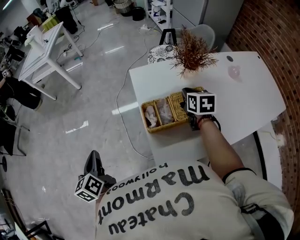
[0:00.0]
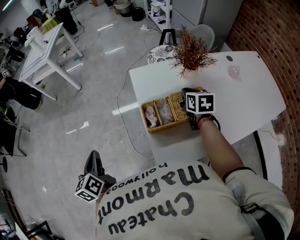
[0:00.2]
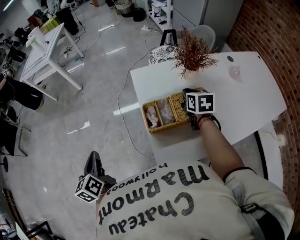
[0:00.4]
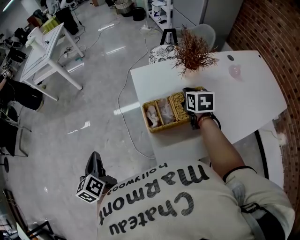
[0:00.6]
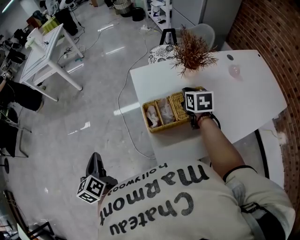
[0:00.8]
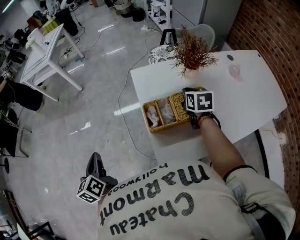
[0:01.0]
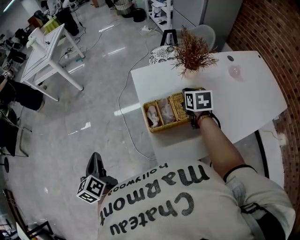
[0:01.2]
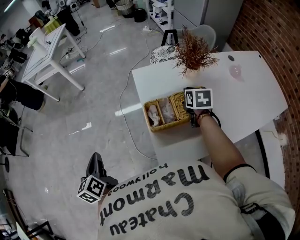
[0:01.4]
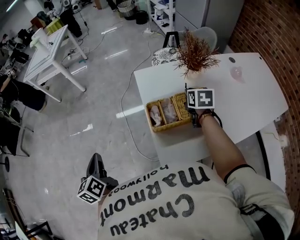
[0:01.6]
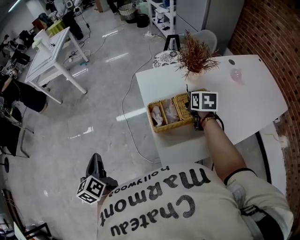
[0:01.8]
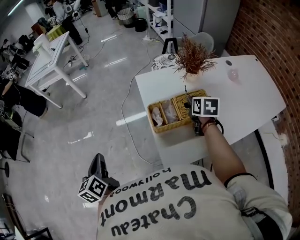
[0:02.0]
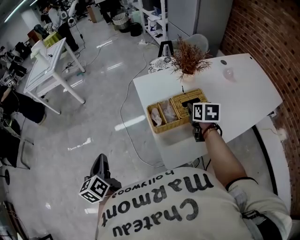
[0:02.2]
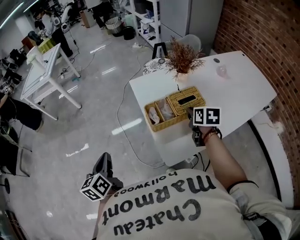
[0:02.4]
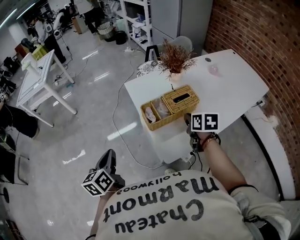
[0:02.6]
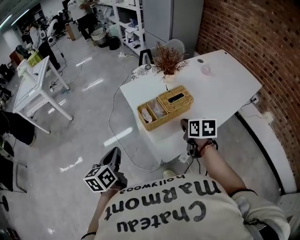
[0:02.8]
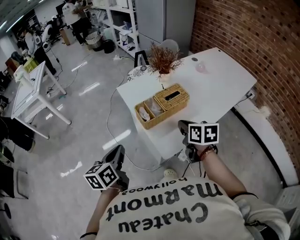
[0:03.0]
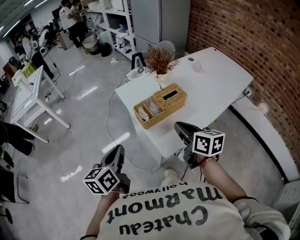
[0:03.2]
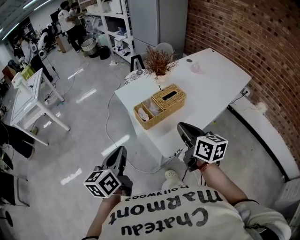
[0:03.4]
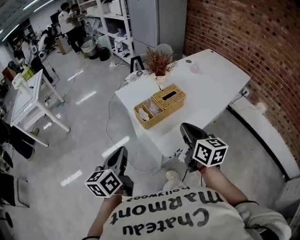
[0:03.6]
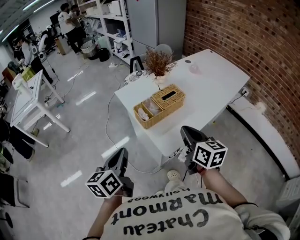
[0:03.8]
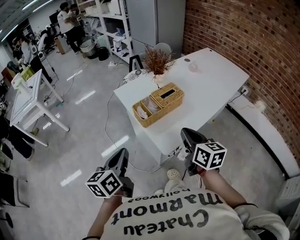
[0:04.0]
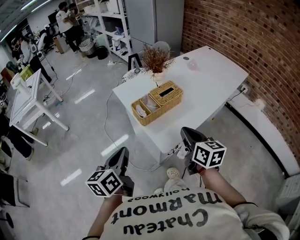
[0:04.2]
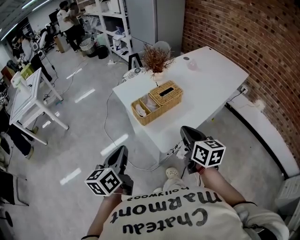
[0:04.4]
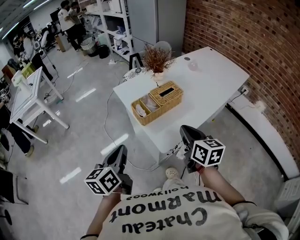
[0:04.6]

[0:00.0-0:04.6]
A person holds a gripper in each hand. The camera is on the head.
0:00.0 to 0:01.6: The grippers make only small movements.
0:01.6 to 0:03.0: The right gripper moves backward, about 25 cm. The left gripper heads to the right, covering some 10 cm, and turns by some 40 degrees.
0:03.0 to 0:04.6: The left gripper shifts by roughly 5 cm; the right gripper travels backward by approximately 10 cm.

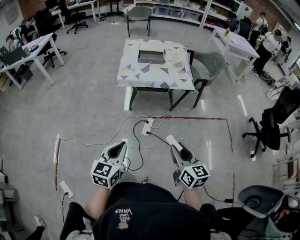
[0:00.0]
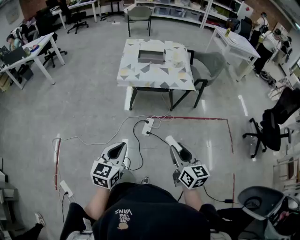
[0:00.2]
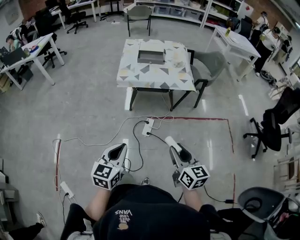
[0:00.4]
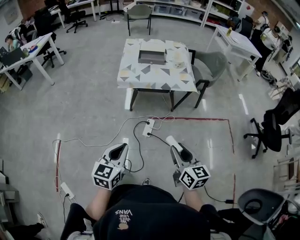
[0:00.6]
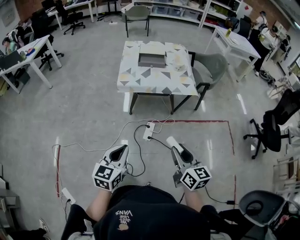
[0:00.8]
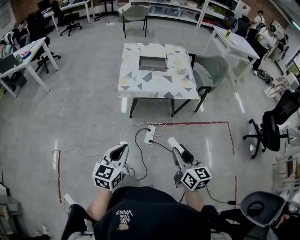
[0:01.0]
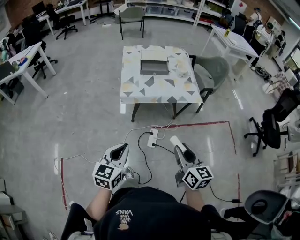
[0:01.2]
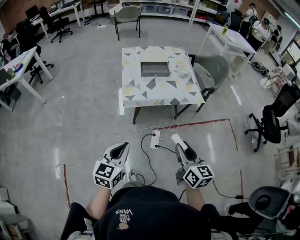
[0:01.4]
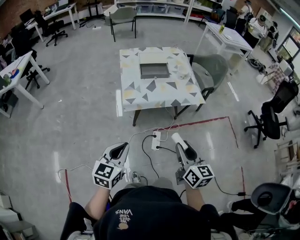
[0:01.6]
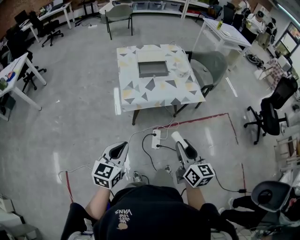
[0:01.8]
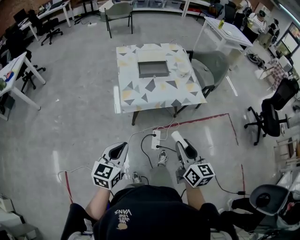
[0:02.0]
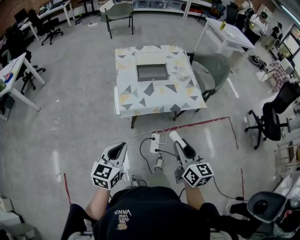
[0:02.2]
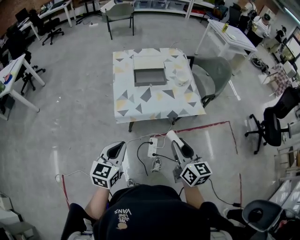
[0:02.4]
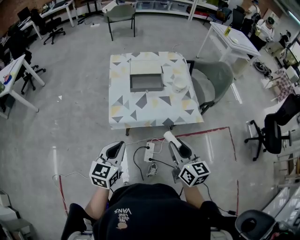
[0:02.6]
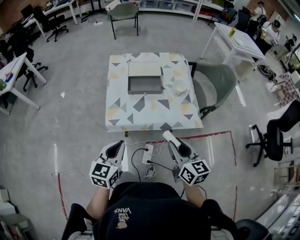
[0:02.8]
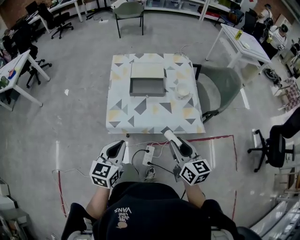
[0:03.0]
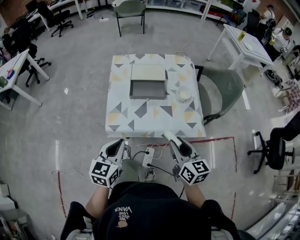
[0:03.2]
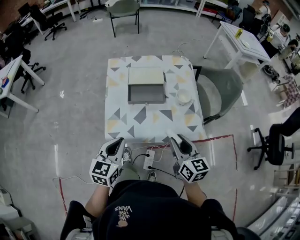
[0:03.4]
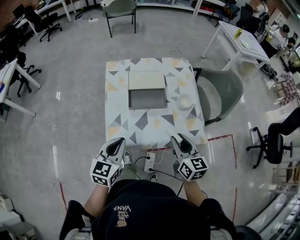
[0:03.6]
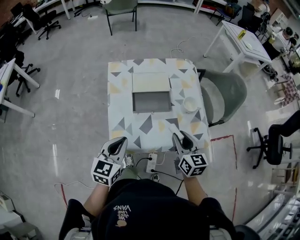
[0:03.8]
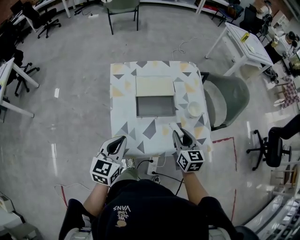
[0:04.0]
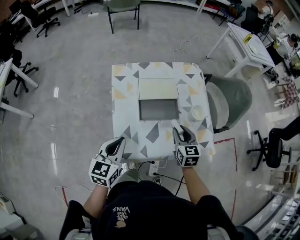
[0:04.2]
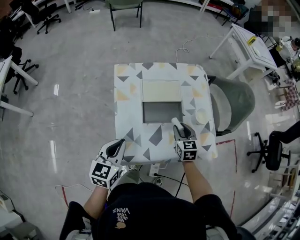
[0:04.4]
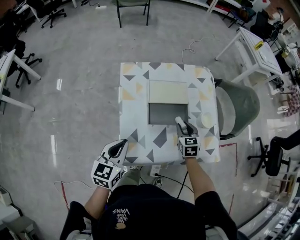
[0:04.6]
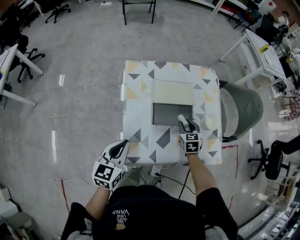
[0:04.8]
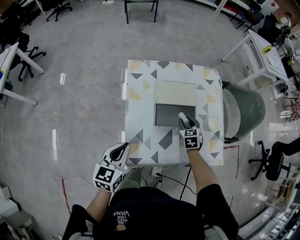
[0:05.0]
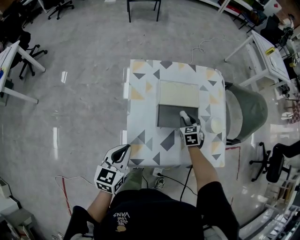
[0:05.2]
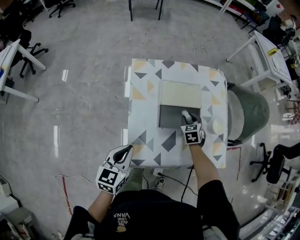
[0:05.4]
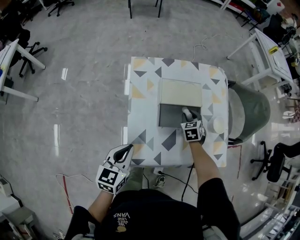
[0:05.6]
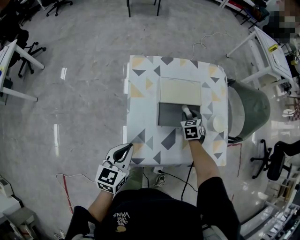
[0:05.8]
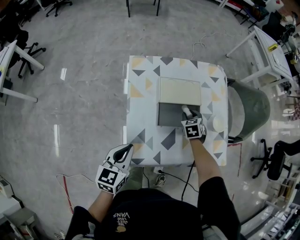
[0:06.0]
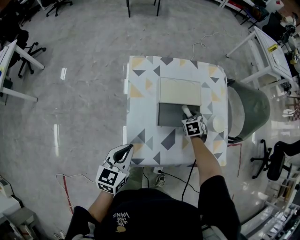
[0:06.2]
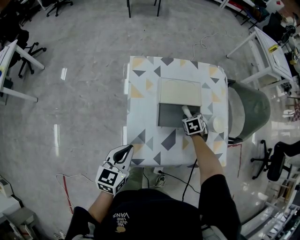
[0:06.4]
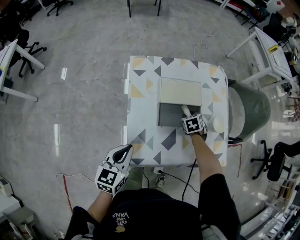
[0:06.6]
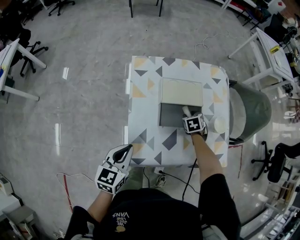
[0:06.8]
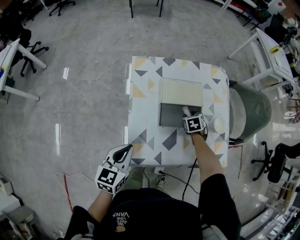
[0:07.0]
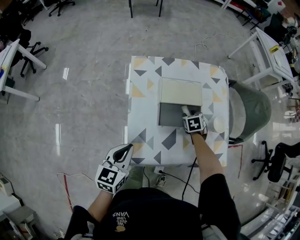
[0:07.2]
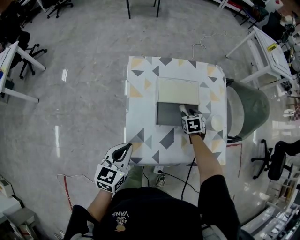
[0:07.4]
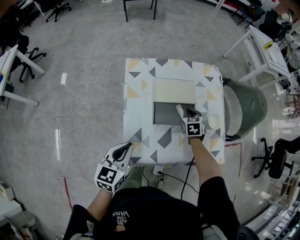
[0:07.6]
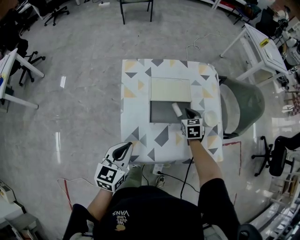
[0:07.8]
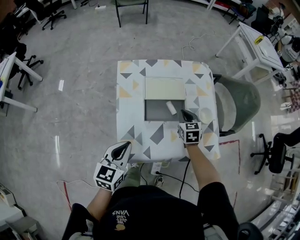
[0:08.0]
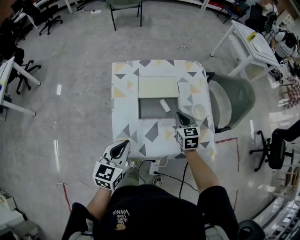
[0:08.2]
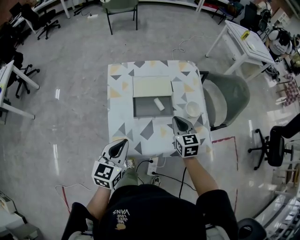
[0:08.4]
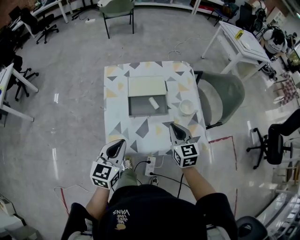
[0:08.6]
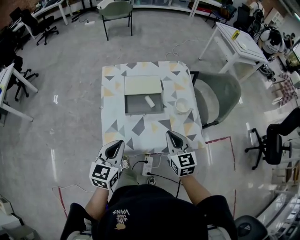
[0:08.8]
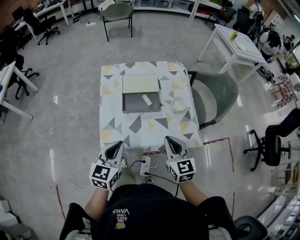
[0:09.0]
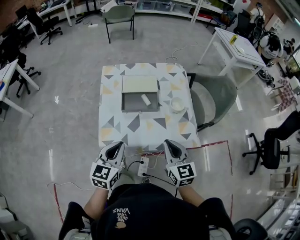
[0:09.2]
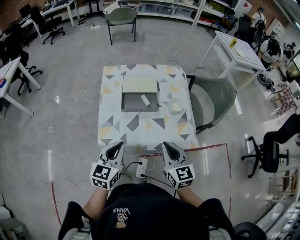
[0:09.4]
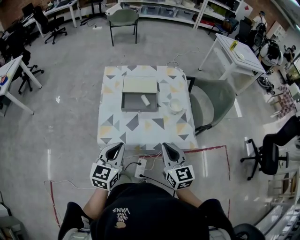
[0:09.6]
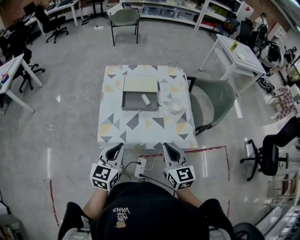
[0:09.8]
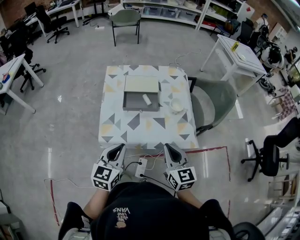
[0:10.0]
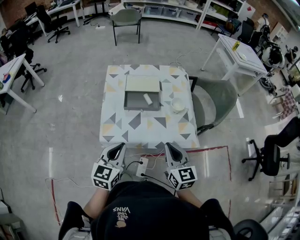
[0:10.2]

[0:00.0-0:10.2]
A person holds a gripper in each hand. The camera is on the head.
0:00.0 to 0:01.4: Both grippers travel together forward and to the left, about 25 cm.
0:01.4 to 0:03.0: Both grippers travel together forward, approximately 30 cm.
0:03.0 to 0:04.4: The left gripper heads forward and to the left, covering roughly 30 cm. The right gripper heads forward and downward, covering about 35 cm, and changes its angle by roughly 30 degrees.
0:04.4 to 0:05.8: The right gripper moves forward and downward, some 15 cm, and changes its angle by approximately 20 degrees. Meanwhile the left gripper ends up about 5 cm from where it was.
0:05.8 to 0:07.2: The grippers stay close to where they were, moving slightly.
0:07.2 to 0:08.8: The right gripper goes about 35 cm backward and upward, tilts its fingers approximately 40 degrees upward, and closes its fingers. Meanwhile the left gripper heads to the right, upward and backward, covering approximately 20 cm.
0:08.8 to 0:10.2: Both grippers travel together backward, roughly 10 cm.

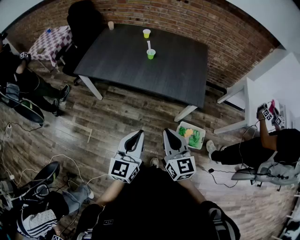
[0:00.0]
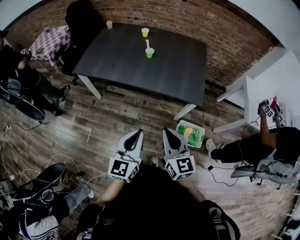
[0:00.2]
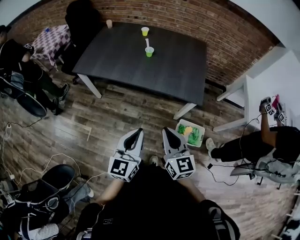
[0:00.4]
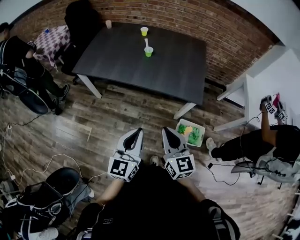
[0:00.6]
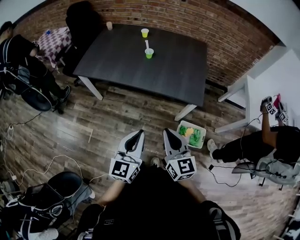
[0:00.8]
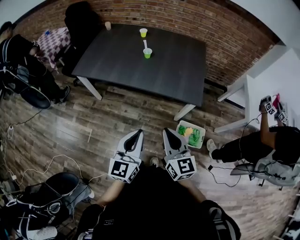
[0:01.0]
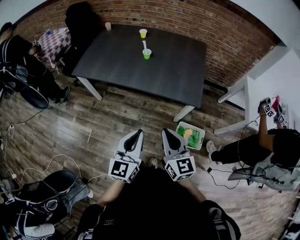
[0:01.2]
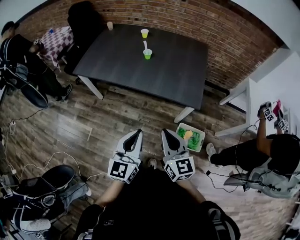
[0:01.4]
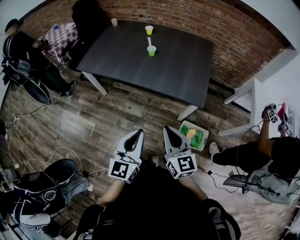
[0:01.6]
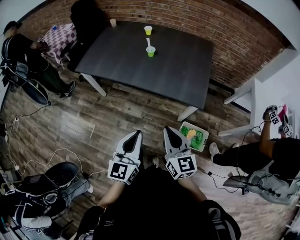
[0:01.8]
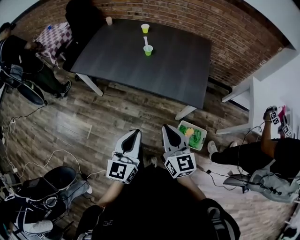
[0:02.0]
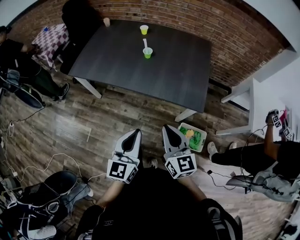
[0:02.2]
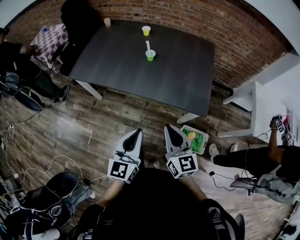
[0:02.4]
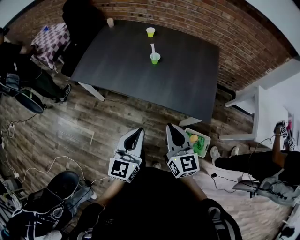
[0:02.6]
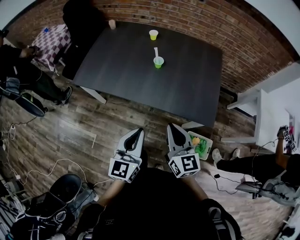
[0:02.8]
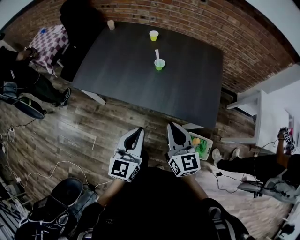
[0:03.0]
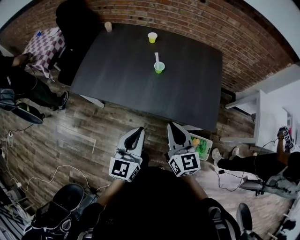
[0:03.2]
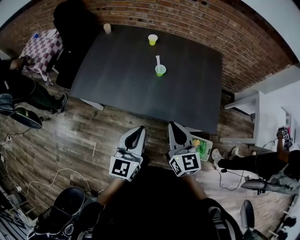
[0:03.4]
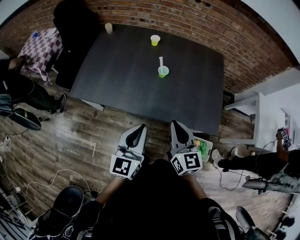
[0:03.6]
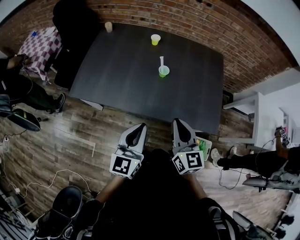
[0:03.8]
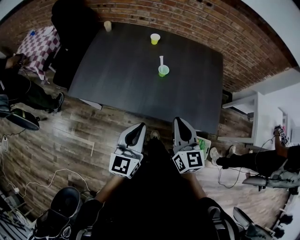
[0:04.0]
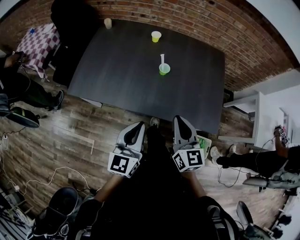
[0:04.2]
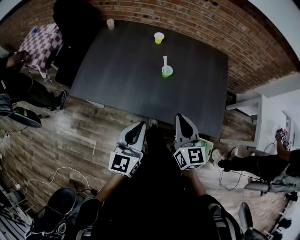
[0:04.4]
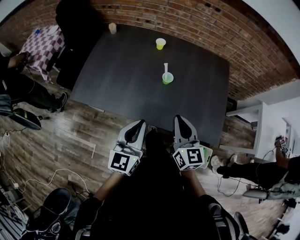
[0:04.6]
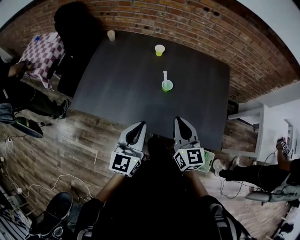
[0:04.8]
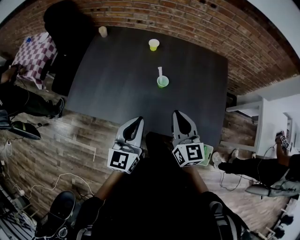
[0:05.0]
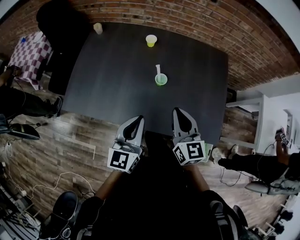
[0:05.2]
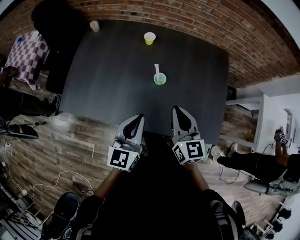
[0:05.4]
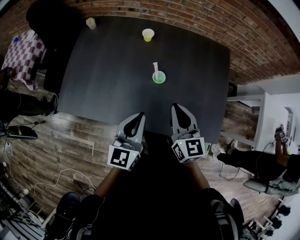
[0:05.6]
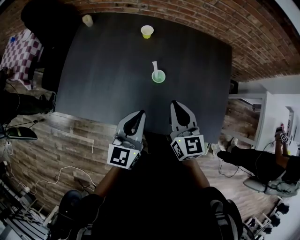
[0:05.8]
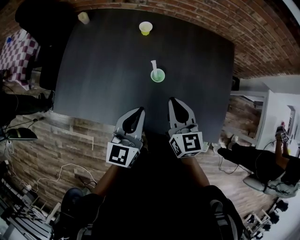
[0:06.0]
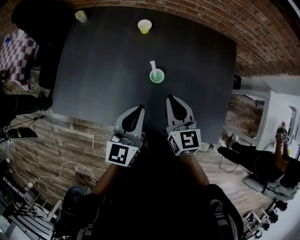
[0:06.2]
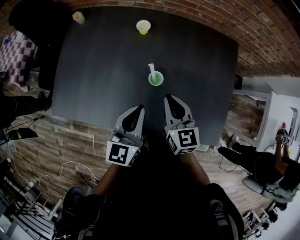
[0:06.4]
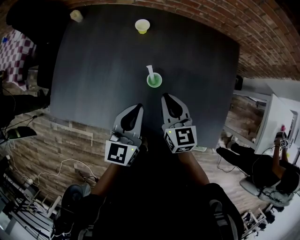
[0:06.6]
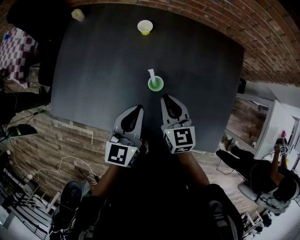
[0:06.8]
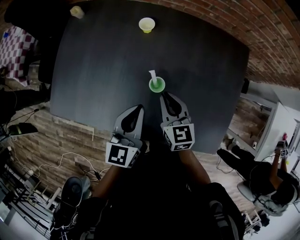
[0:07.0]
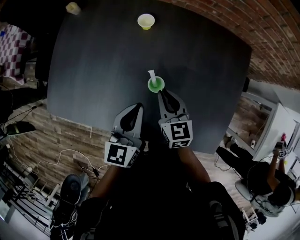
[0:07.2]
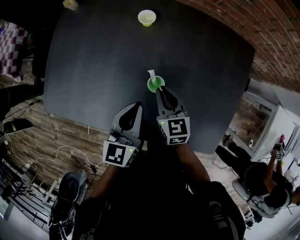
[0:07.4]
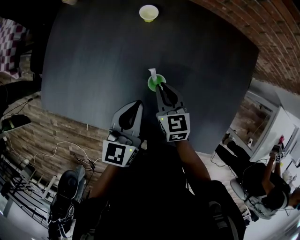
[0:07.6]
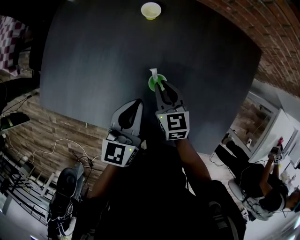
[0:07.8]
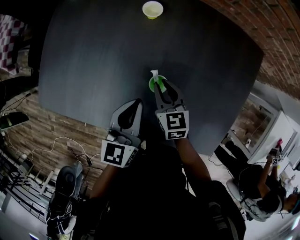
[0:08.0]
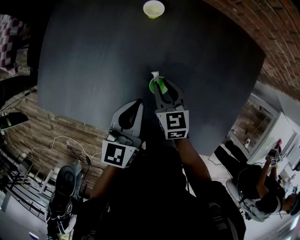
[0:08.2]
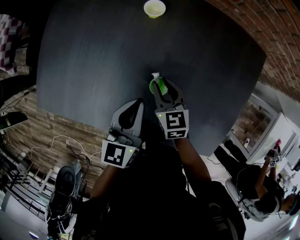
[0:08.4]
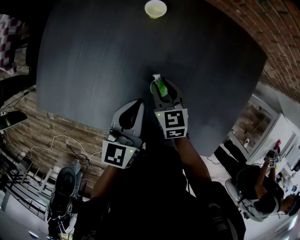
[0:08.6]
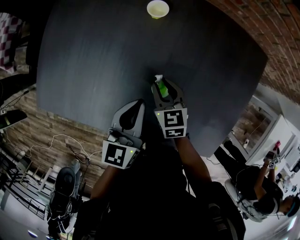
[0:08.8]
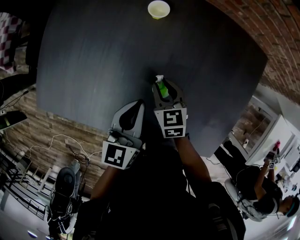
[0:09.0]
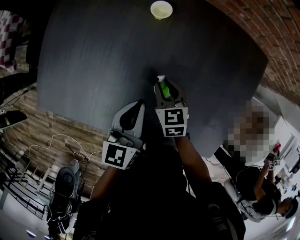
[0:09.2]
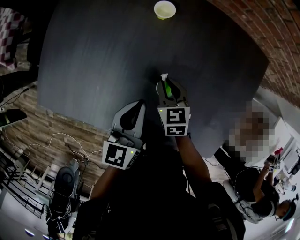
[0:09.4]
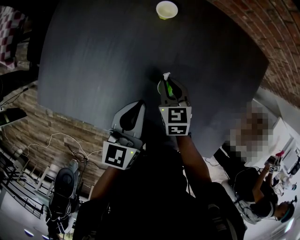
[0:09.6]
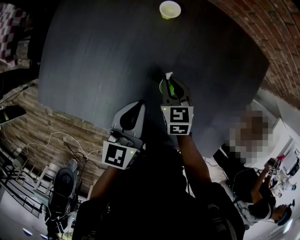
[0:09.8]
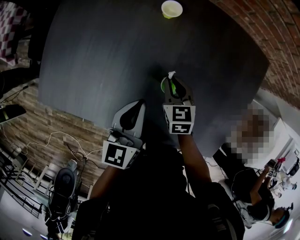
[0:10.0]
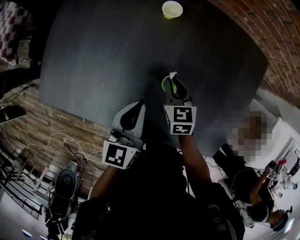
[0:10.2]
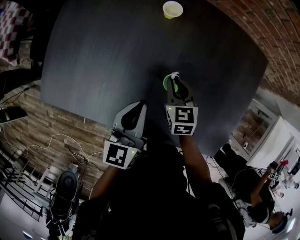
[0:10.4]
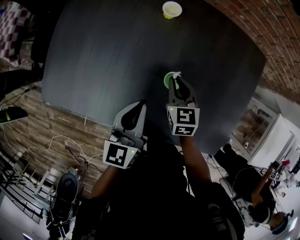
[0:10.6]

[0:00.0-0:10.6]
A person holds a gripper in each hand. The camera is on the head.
0:00.0 to 0:01.6: Both grippers travel together to the right, about 5 cm.
0:01.6 to 0:03.0: The right gripper shifts about 25 cm forward. The left gripper travels forward and to the left by roughly 25 cm.
0:03.0 to 0:04.6: The left gripper shifts roughly 15 cm forward and to the left. Meanwhile the right gripper shifts some 15 cm forward.
0:04.6 to 0:06.0: Both grippers travel together forward, about 20 cm.
0:06.0 to 0:07.6: The right gripper moves downward and forward, about 20 cm, and turns by roughly 20 degrees, while the left gripper travels forward and downward by approximately 15 cm.
0:07.6 to 0:09.0: The right gripper travels downward by approximately 5 cm.
0:09.0 to 0:10.6: The left gripper ends up roughly 5 cm from where it was.
